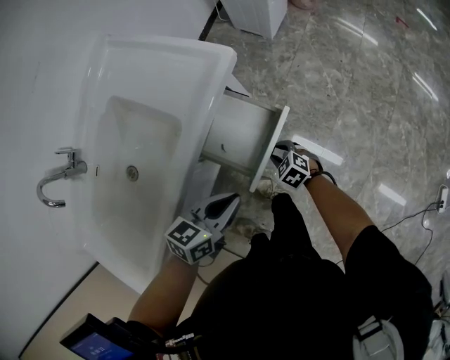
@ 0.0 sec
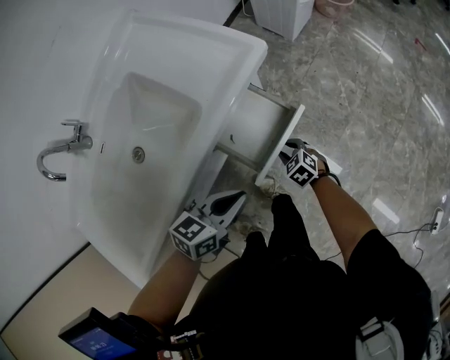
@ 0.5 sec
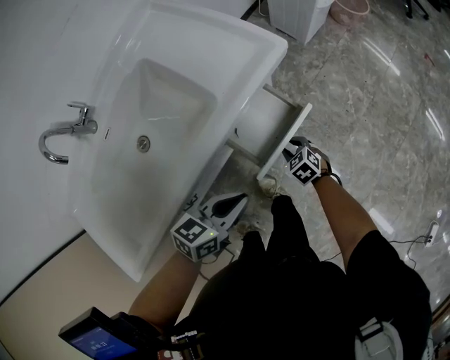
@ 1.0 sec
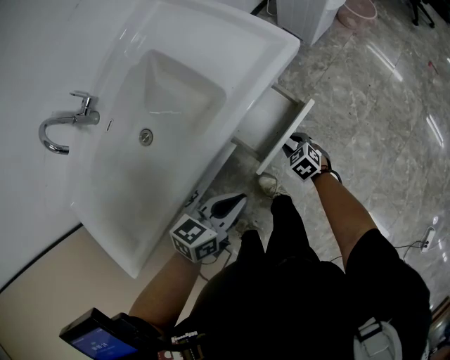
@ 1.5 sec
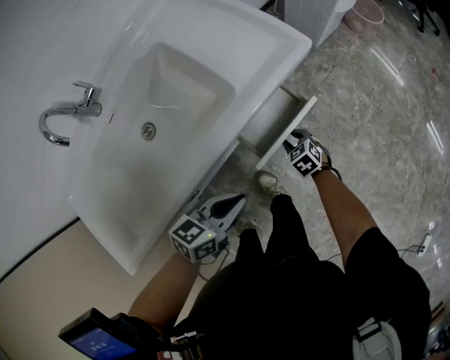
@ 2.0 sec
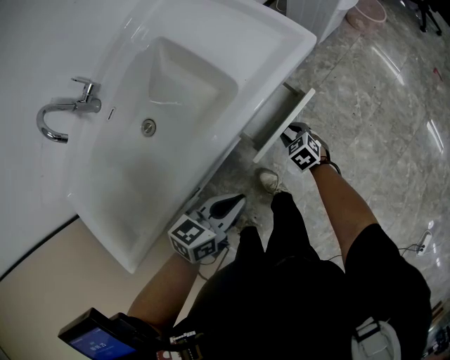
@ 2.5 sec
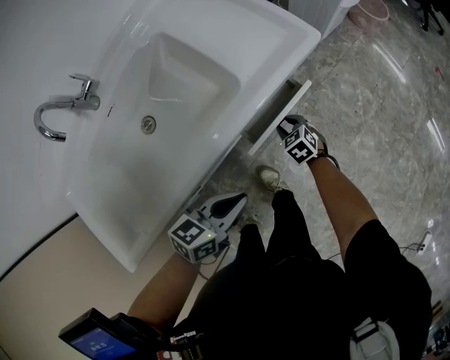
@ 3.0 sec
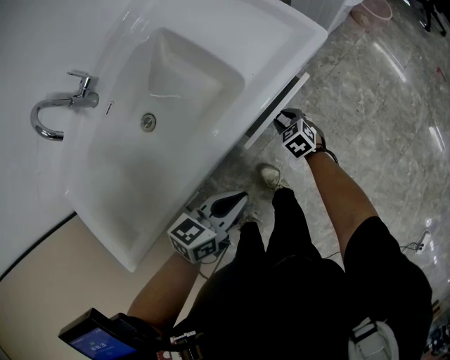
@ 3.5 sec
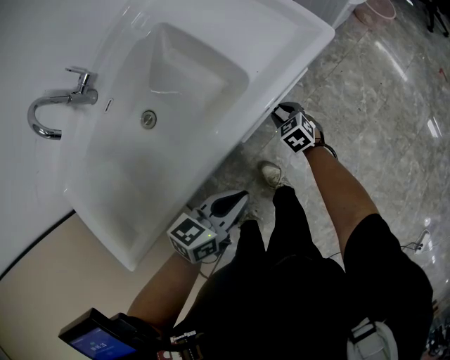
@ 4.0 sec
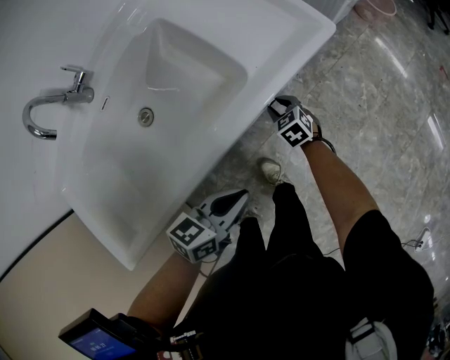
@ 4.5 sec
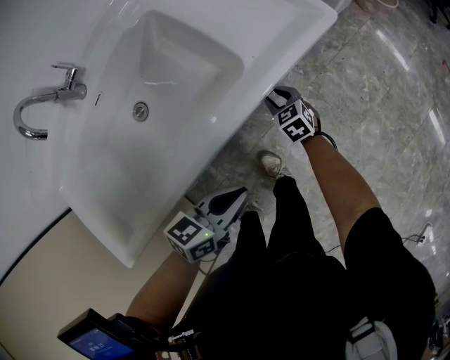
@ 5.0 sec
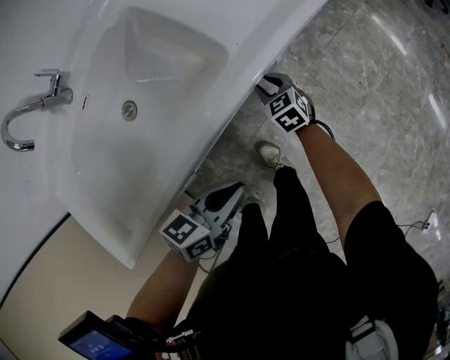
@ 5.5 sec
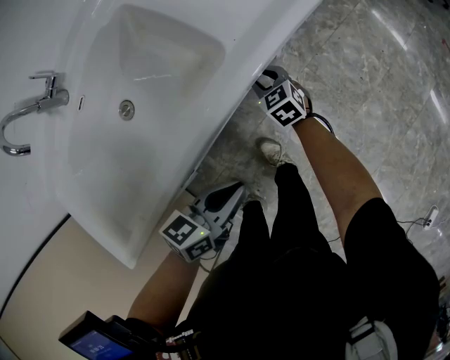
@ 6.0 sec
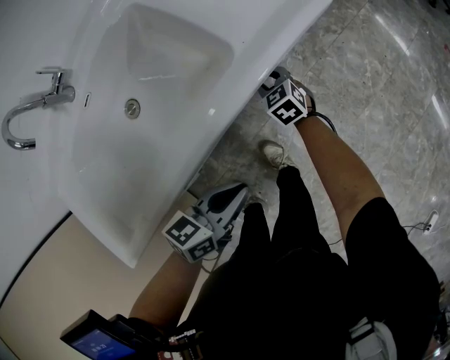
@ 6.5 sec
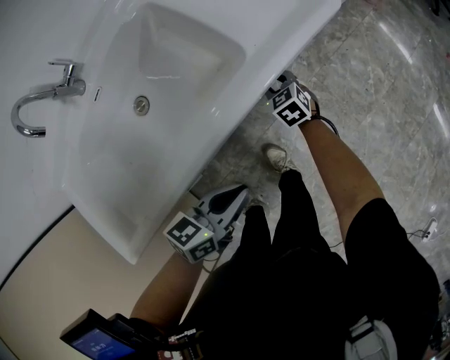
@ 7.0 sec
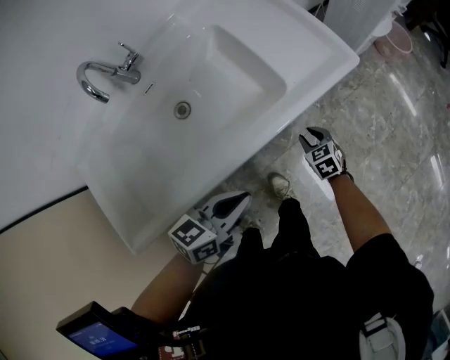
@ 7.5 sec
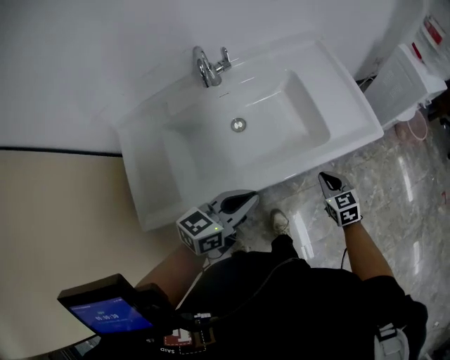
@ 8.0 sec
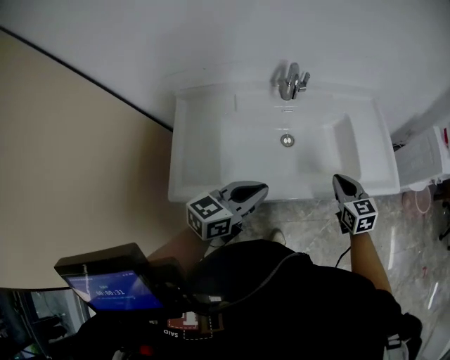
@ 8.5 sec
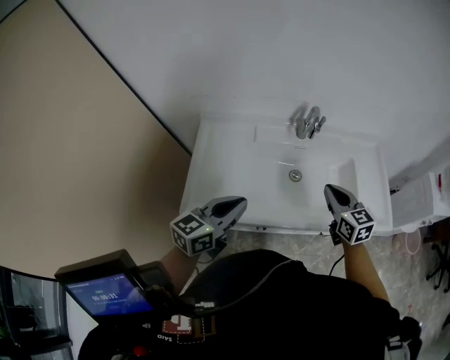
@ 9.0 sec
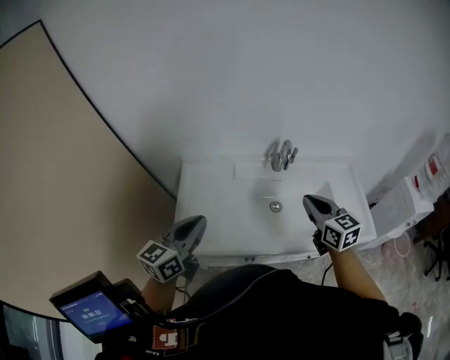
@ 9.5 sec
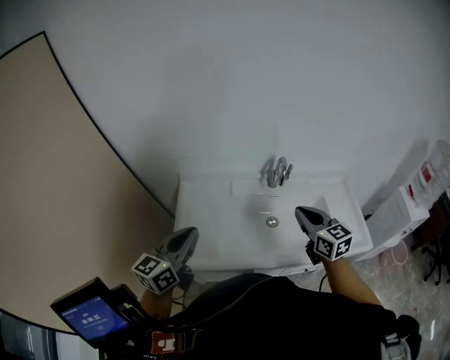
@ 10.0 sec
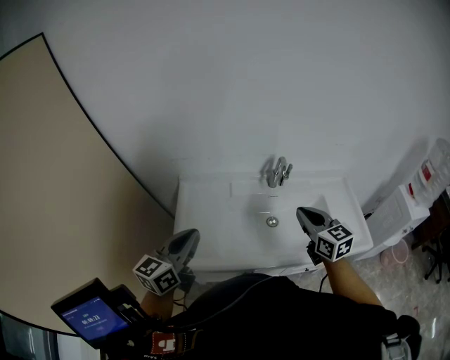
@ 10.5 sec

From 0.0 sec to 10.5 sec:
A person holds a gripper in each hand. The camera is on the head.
From 0.0 sec to 2.0 sec: The two grippers go some 10 cm to the left.
From 2.0 sec to 4.0 sec: The right gripper goes some 10 cm to the left and forward.
From 4.0 sec to 6.5 sec: There are only small adjustments of the grippers.
From 6.5 sec to 8.5 sec: The right gripper heads upward, covering about 40 cm, changes its angle by some 20 degrees, and closes its fingers; the left gripper changes place by some 40 cm, and rotates approximately 40 degrees.
From 8.5 sec to 10.5 sec: The left gripper goes approximately 25 cm to the left and upward, and turns by about 30 degrees; the right gripper shifts roughly 25 cm upward and to the left.

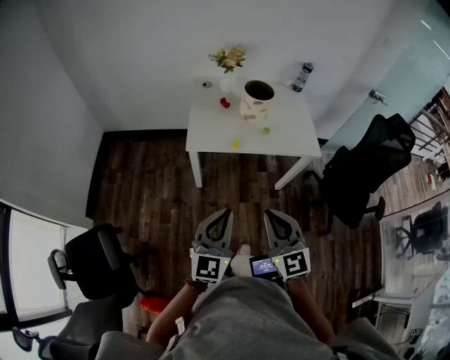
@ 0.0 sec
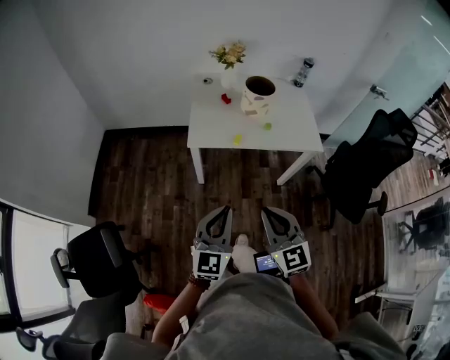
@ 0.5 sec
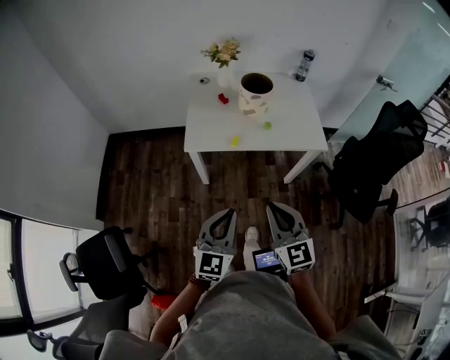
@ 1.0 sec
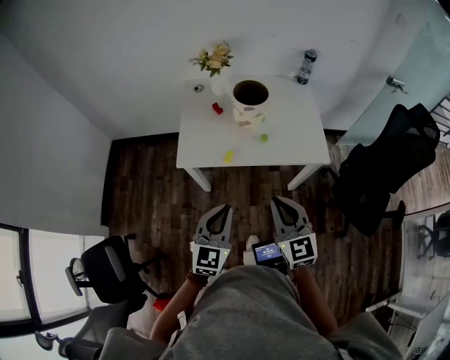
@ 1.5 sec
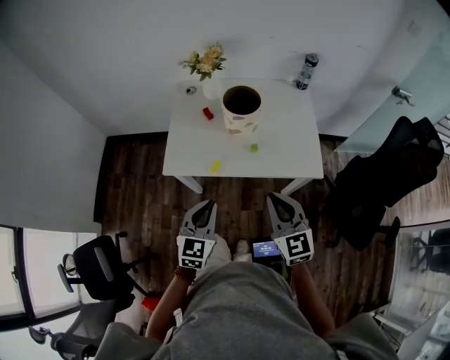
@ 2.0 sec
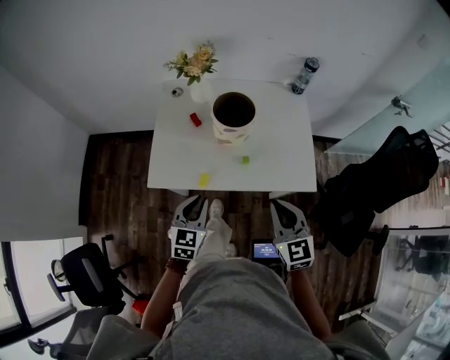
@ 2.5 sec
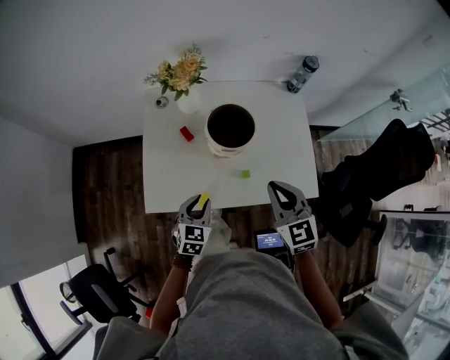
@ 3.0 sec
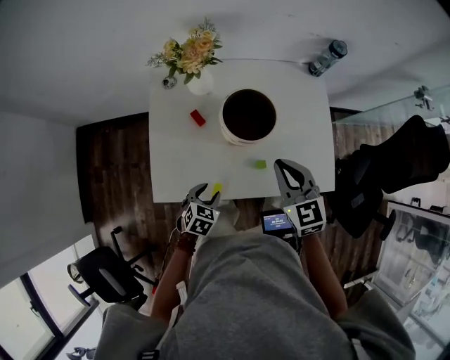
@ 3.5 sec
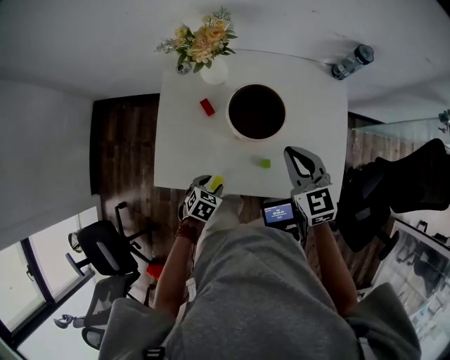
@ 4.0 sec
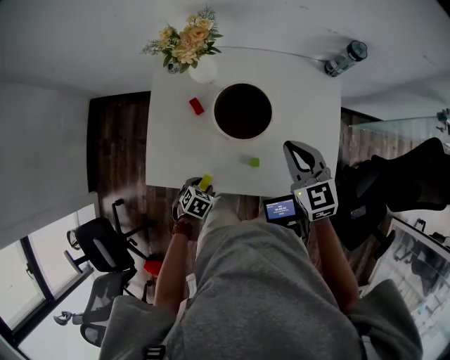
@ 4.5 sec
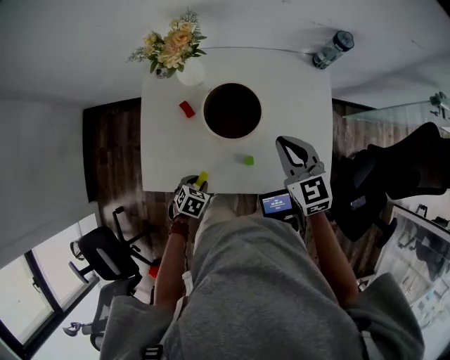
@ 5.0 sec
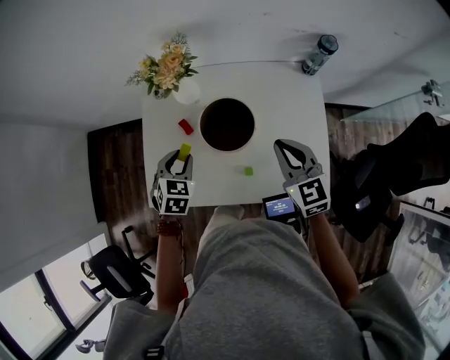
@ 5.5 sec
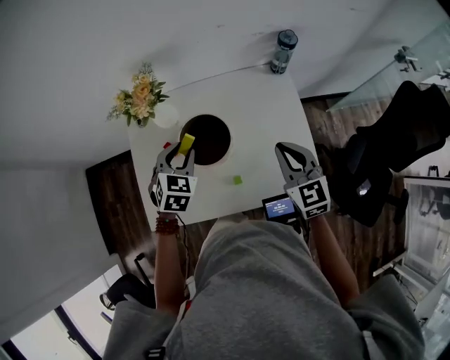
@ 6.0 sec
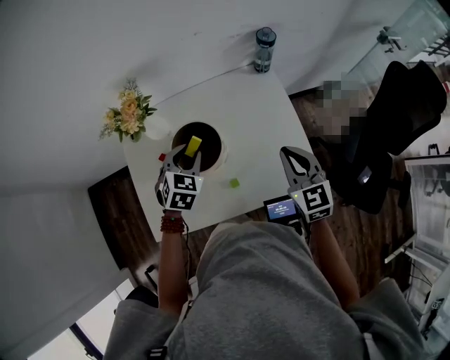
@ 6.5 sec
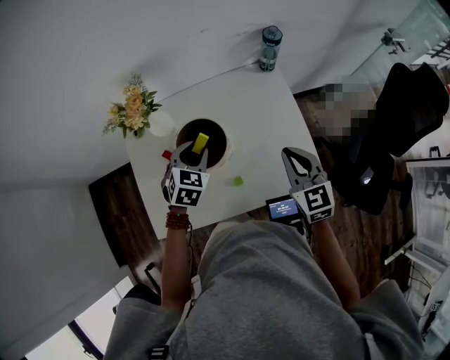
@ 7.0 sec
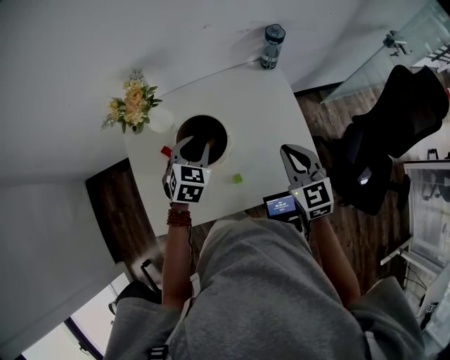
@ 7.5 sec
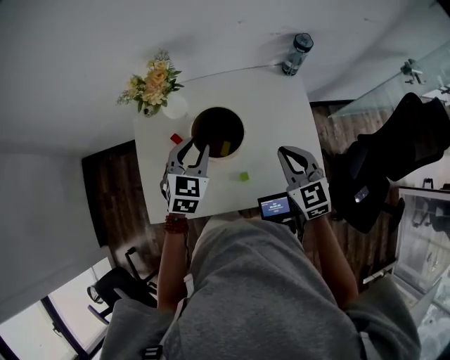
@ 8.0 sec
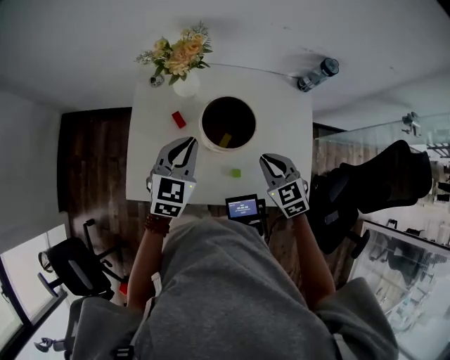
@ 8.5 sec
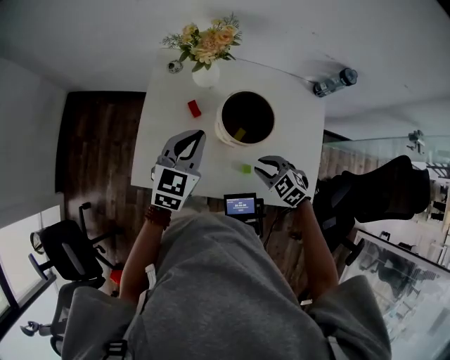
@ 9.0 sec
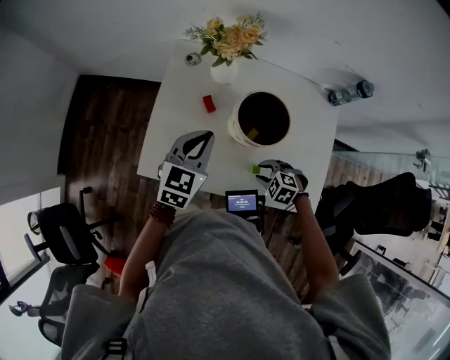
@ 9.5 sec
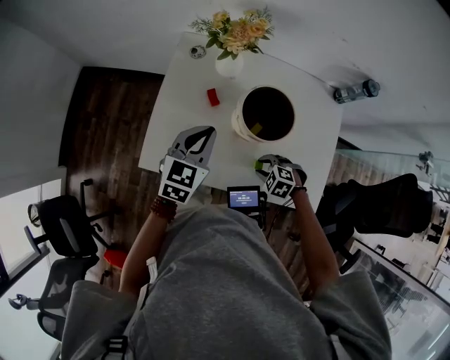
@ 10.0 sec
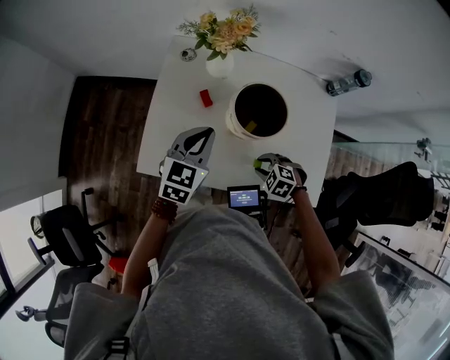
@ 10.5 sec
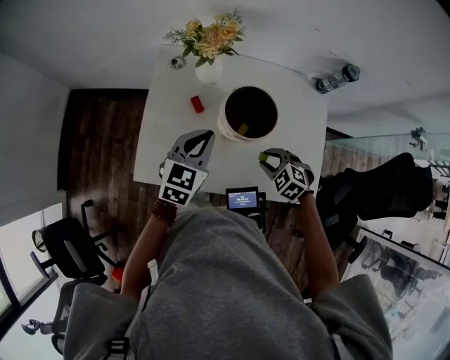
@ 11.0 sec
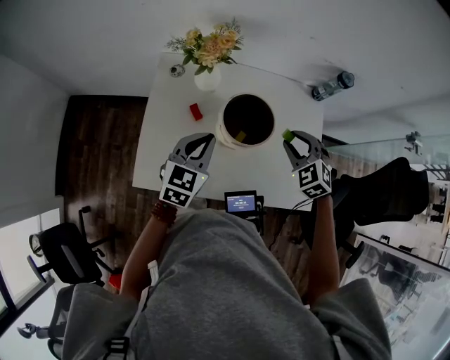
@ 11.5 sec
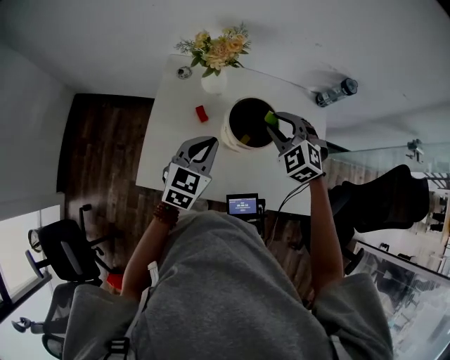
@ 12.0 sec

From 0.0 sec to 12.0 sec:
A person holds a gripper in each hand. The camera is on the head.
From 0.0 sec to 2.0 sec: The left gripper shifts about 25 cm forward, to the right and downward, and rotates roughly 20 degrees; the right gripper moves forward and to the right, some 30 cm.
From 2.0 sec to 4.0 sec: The right gripper shifts about 35 cm forward, while the left gripper goes about 35 cm downward and forward, points its fingers about 50 degrees further downward, and opens.
From 4.0 sec to 6.0 sec: The right gripper heads to the right, covering approximately 10 cm. Meanwhile the left gripper travels forward and upward by approximately 30 cm, and rotates approximately 30 degrees.
From 6.0 sec to 8.0 sec: The grippers move only a little.
From 8.0 sec to 10.0 sec: The right gripper goes roughly 25 cm downward, angles its fingers downward, by approximately 50 degrees, and opens up, while the left gripper ends up roughly 10 cm from where it was, swivels approximately 20 degrees, and closes its fingers.
From 10.0 sec to 12.0 sec: The right gripper is displaced upward by roughly 25 cm, and tips its fingers upward by approximately 30 degrees.

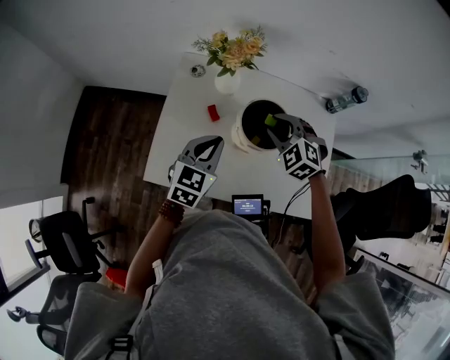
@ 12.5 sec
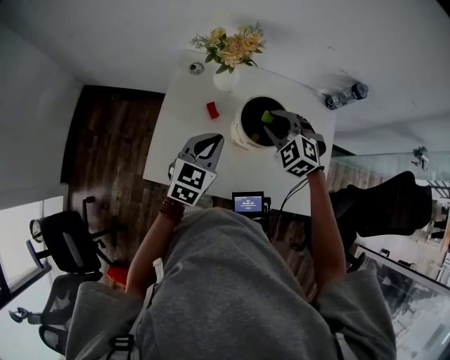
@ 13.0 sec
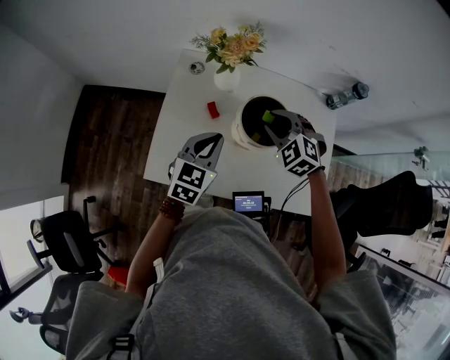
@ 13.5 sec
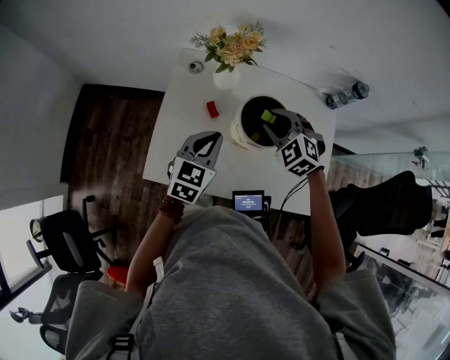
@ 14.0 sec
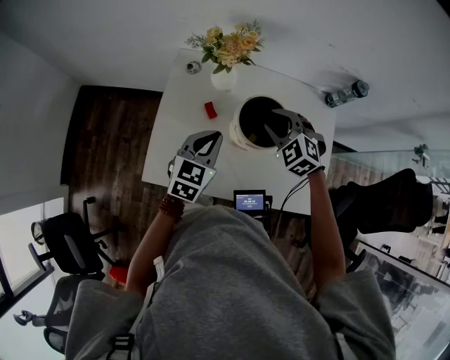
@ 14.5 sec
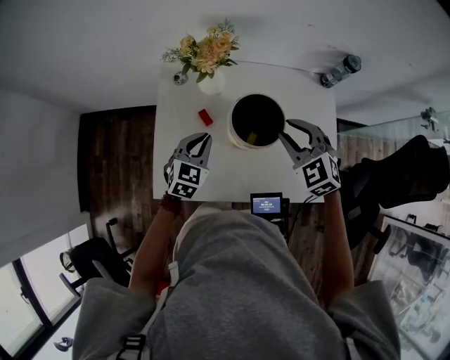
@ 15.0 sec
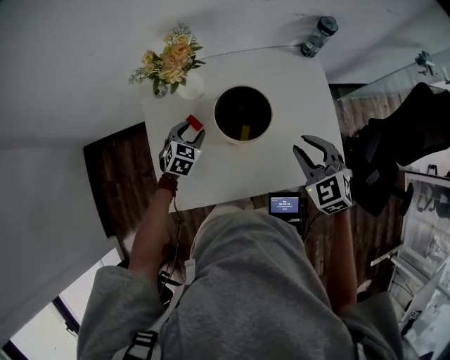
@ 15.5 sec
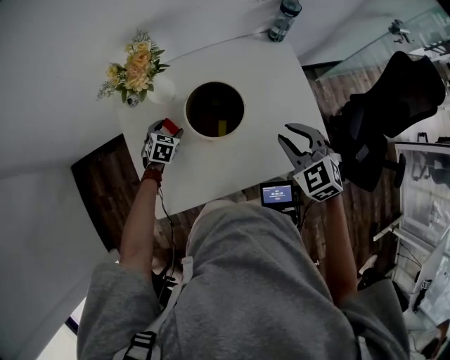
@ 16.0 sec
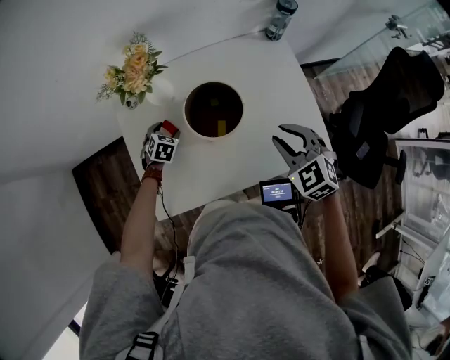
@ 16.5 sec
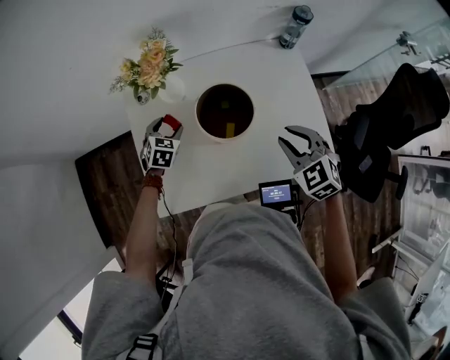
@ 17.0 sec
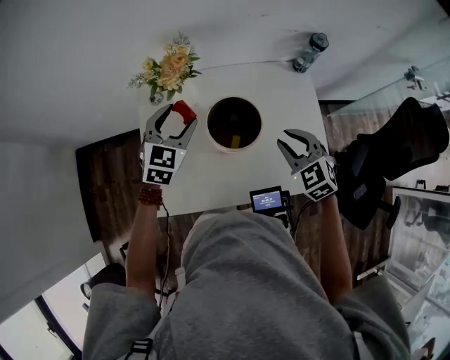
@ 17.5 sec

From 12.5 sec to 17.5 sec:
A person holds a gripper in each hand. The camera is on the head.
From 12.5 sec to 15.0 sec: The right gripper changes place by roughly 5 cm, and turns by roughly 20 degrees. Meanwhile the left gripper is displaced downward by some 5 cm.
From 15.0 sec to 17.5 sec: The right gripper moves to the right, approximately 5 cm. Meanwhile the left gripper shifts approximately 15 cm upward and forward, and opens.
